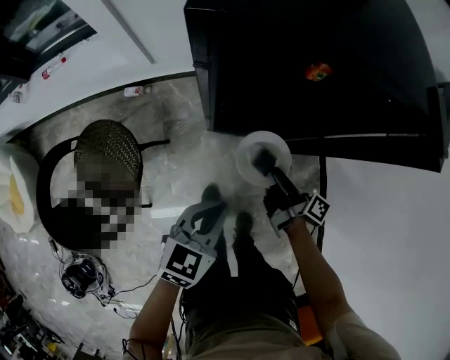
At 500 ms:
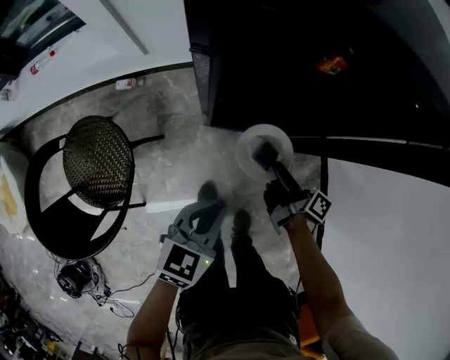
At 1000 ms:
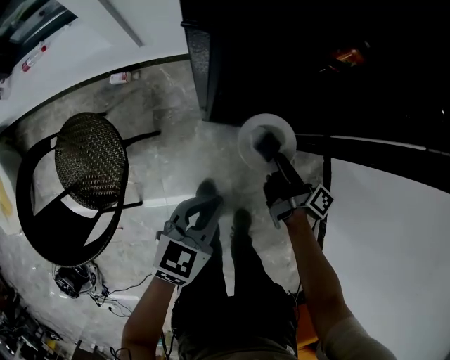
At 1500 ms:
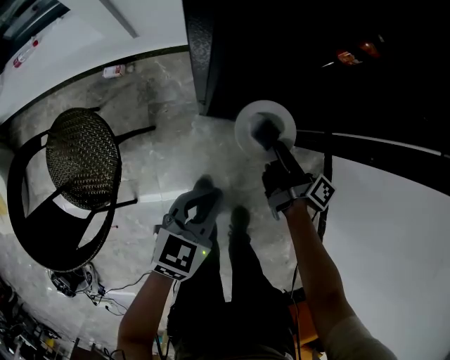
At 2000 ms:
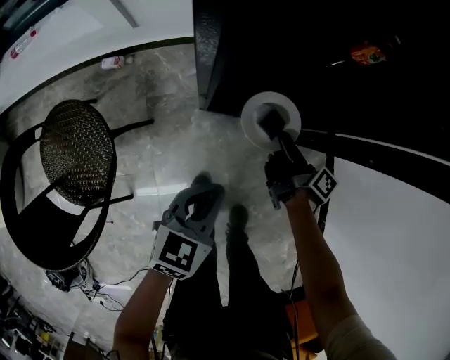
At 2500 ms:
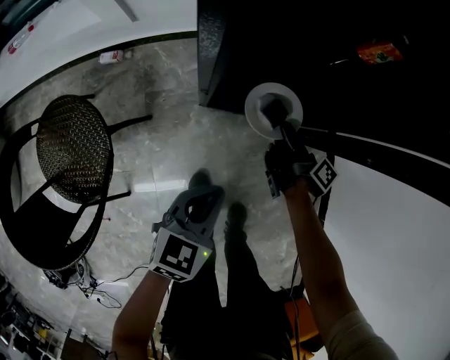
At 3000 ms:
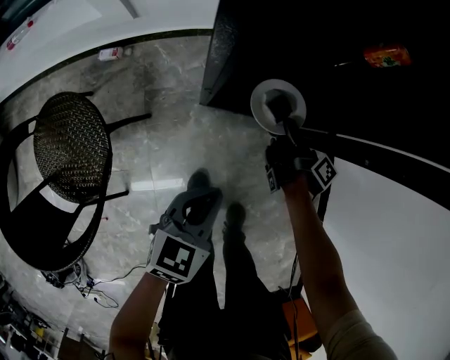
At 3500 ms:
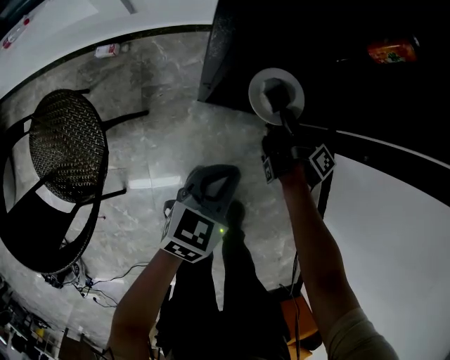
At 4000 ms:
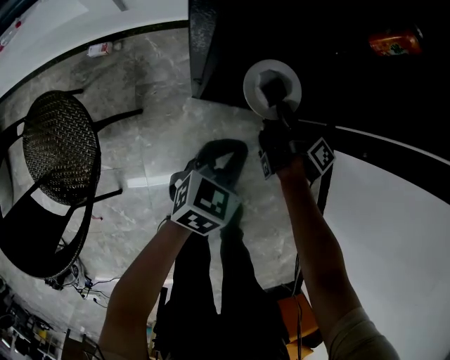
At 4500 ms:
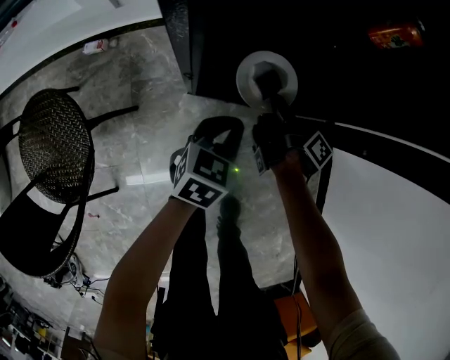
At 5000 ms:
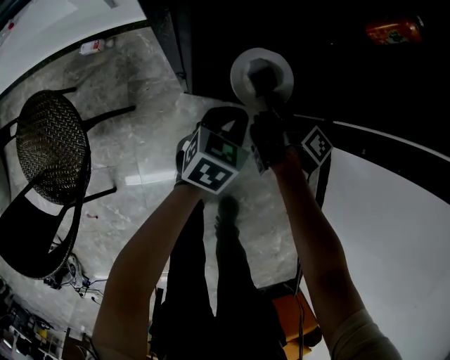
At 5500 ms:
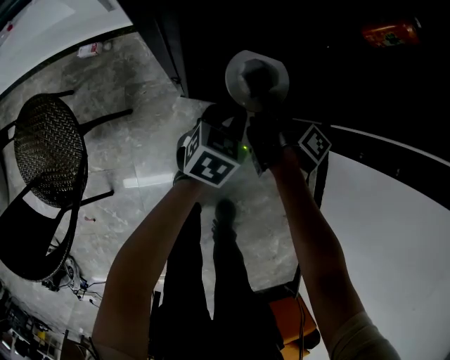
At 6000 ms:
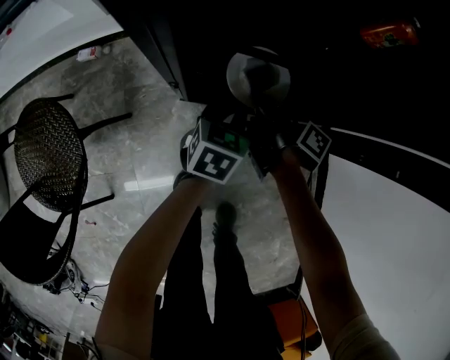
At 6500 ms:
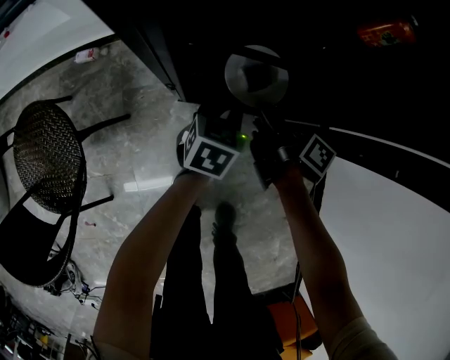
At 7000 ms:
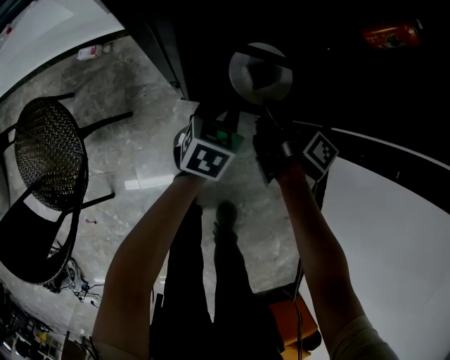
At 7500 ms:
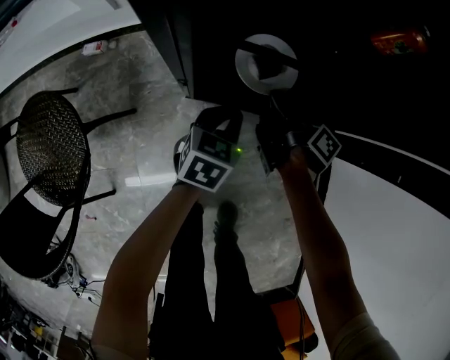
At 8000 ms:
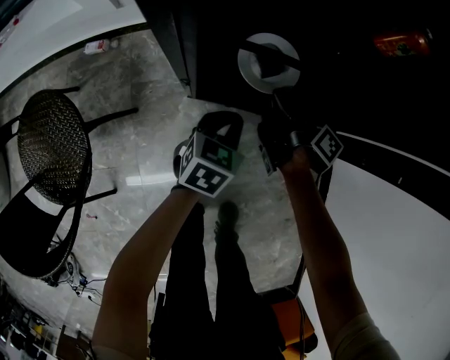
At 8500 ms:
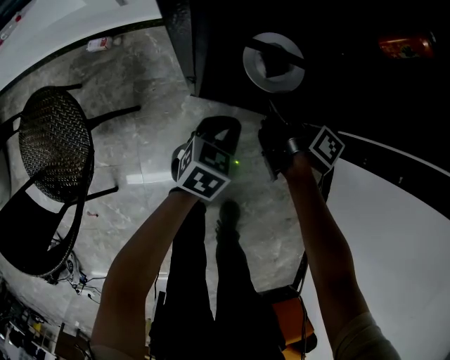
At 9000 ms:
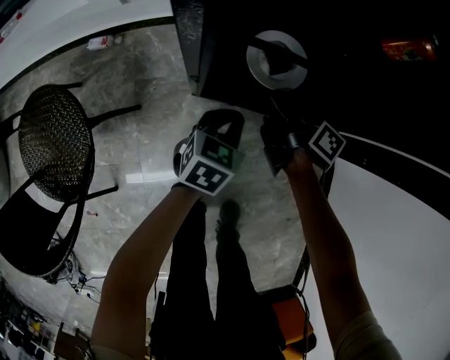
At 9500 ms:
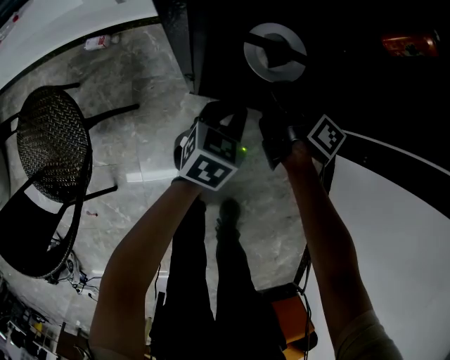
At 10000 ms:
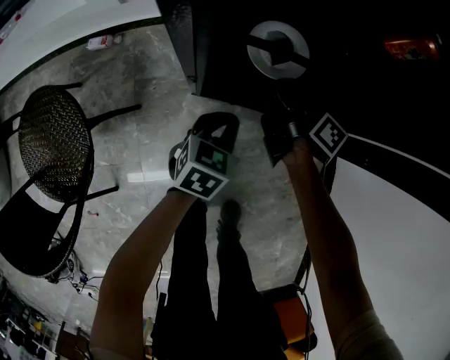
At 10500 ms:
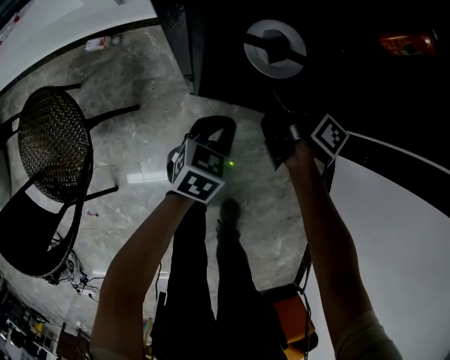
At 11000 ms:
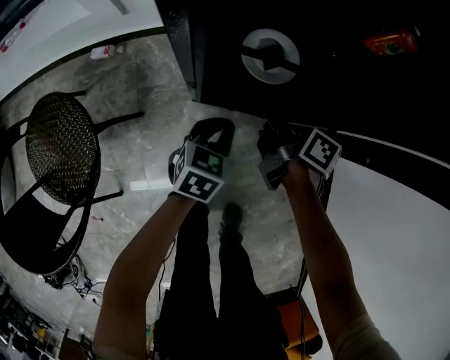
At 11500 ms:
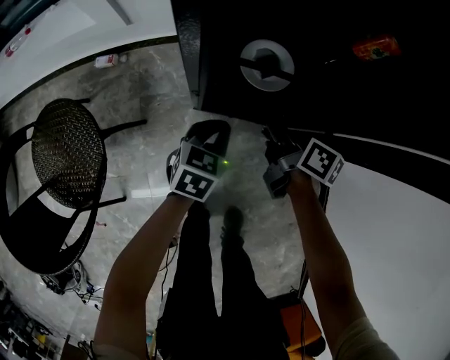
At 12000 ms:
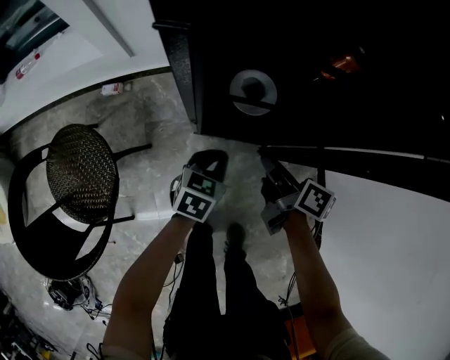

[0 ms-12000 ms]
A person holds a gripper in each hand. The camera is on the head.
0 ms to 2000 ms: The left gripper goes approximately 15 cm downward.
2000 ms to 4000 ms: The left gripper changes place by about 10 cm.
4000 ms to 6000 ms: The left gripper changes place by roughly 10 cm.
10000 ms to 12000 ms: The left gripper goes some 10 cm upward.

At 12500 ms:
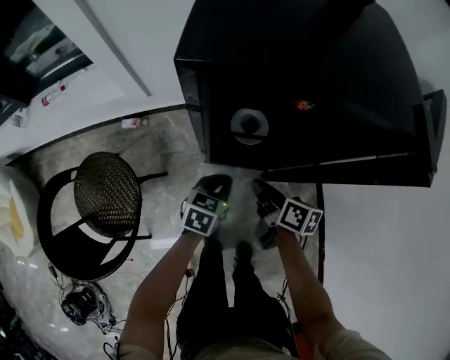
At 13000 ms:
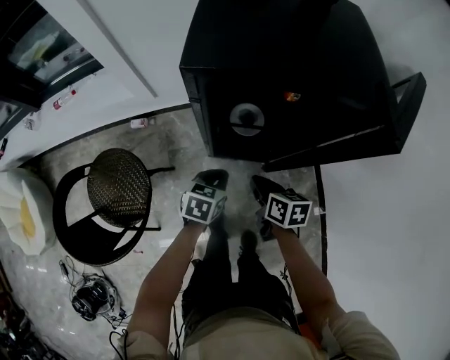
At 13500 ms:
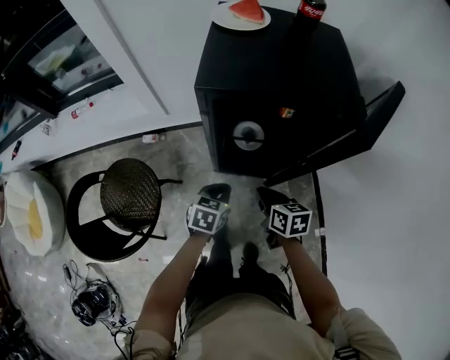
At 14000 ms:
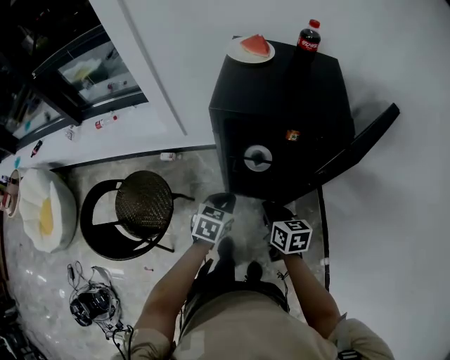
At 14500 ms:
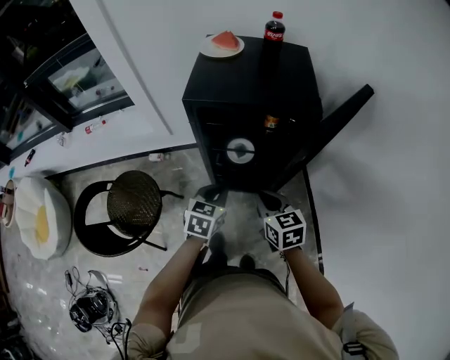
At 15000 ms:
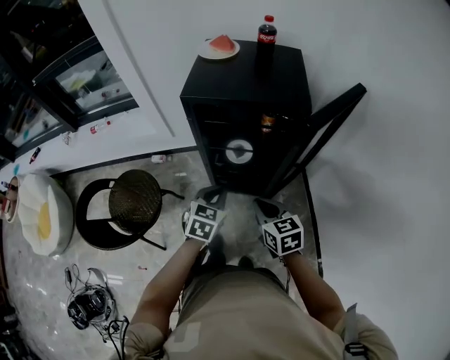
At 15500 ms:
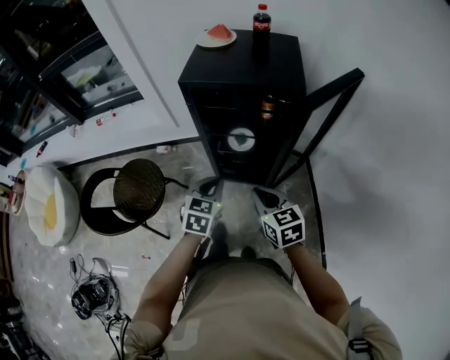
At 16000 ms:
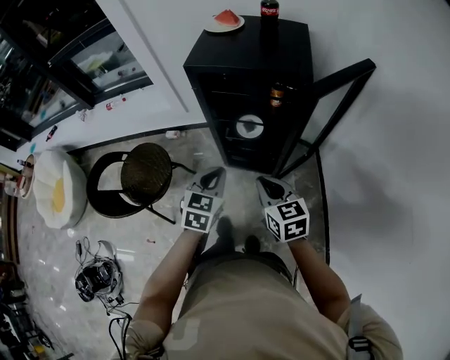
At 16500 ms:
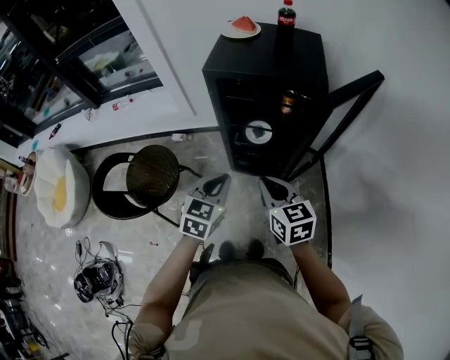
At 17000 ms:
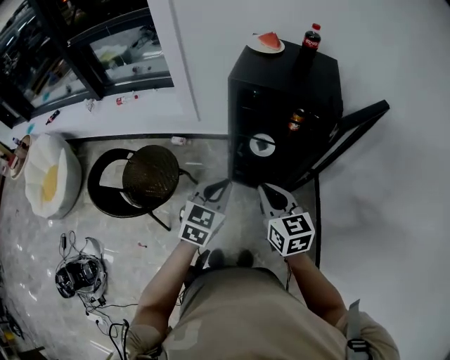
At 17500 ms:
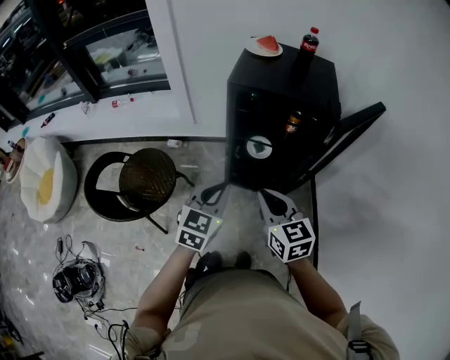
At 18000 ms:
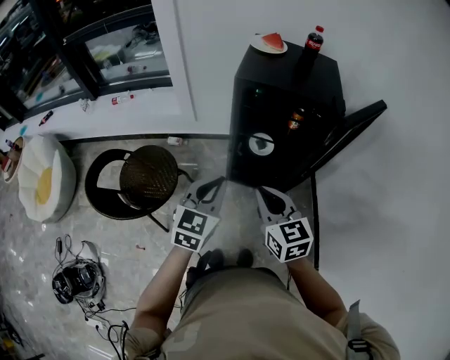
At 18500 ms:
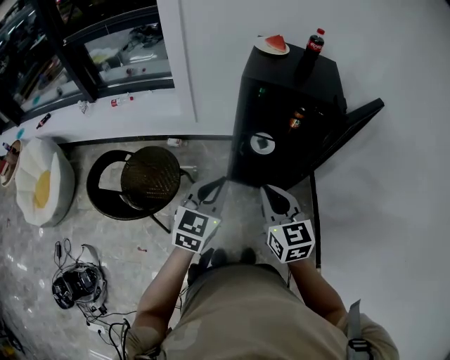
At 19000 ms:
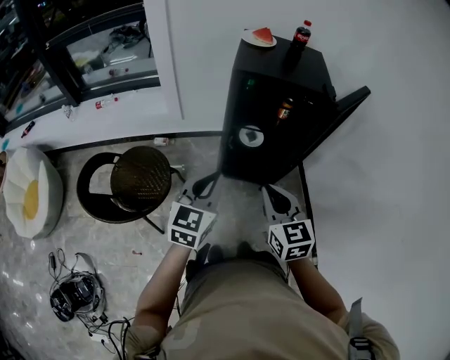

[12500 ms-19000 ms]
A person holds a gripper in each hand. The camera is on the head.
12500 ms to 14500 ms: The left gripper travels upward by some 20 cm.
14500 ms to 17000 ms: The left gripper changes place by some 15 cm.
17000 ms to 19000 ms: The left gripper changes place by approximately 10 cm.

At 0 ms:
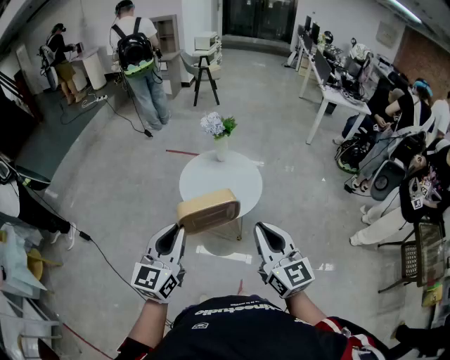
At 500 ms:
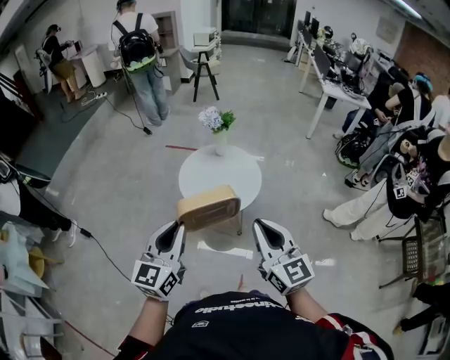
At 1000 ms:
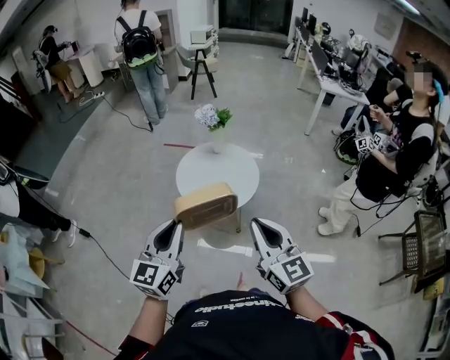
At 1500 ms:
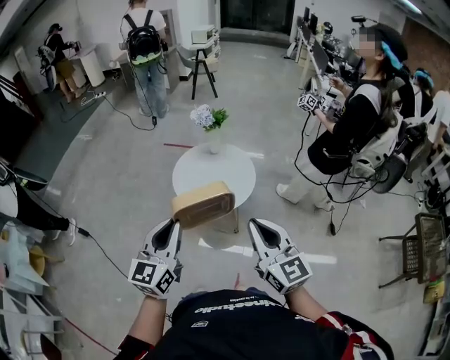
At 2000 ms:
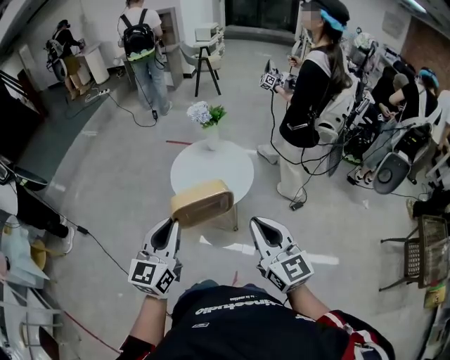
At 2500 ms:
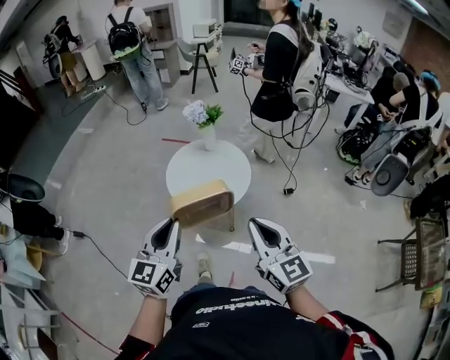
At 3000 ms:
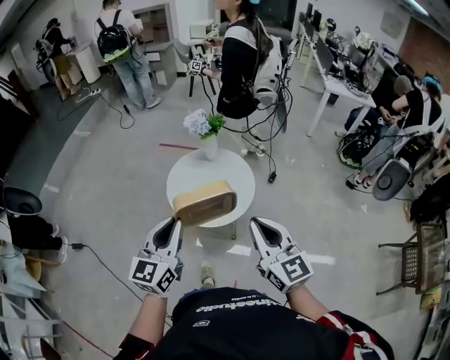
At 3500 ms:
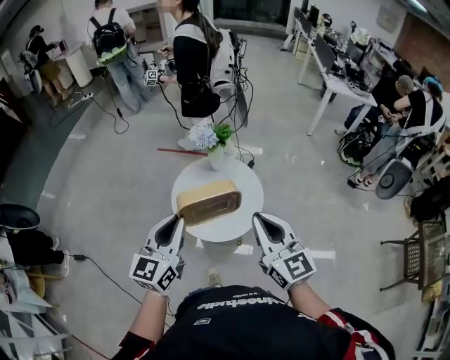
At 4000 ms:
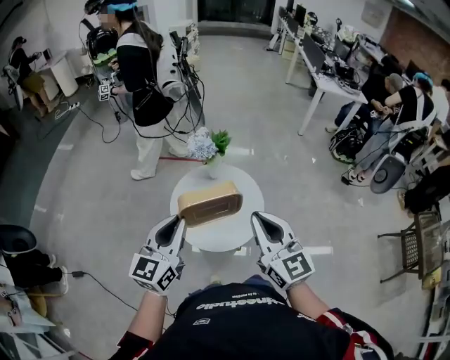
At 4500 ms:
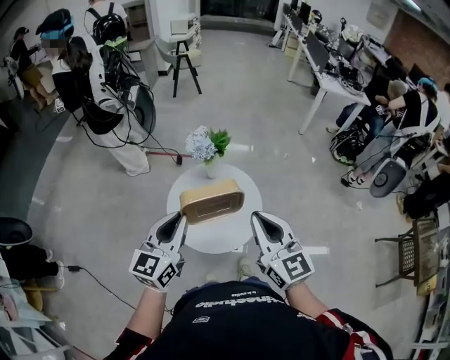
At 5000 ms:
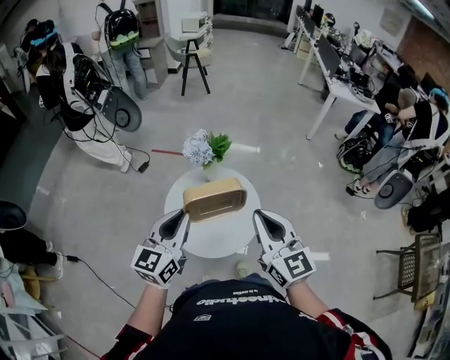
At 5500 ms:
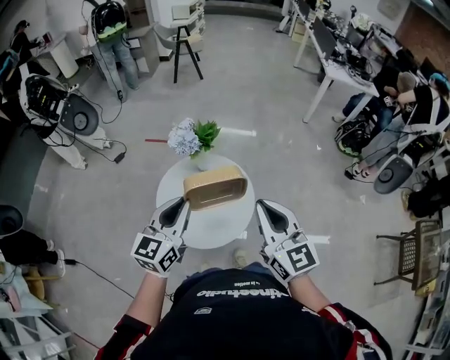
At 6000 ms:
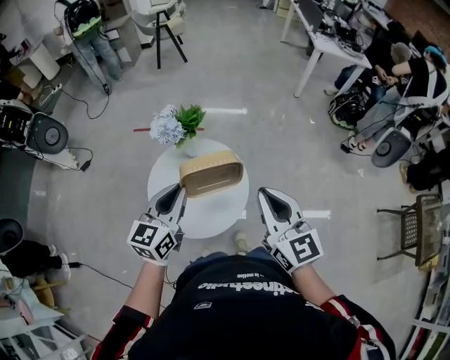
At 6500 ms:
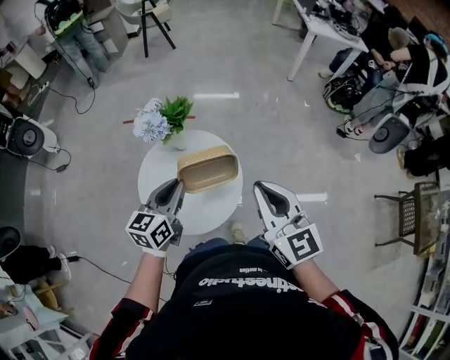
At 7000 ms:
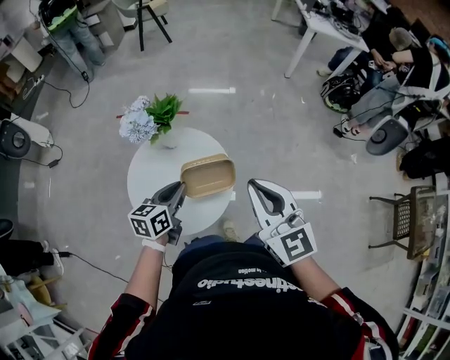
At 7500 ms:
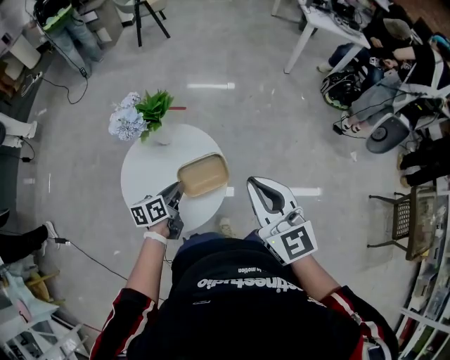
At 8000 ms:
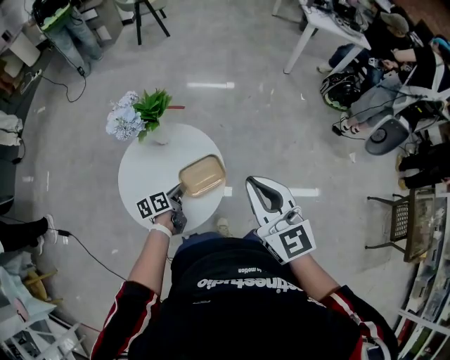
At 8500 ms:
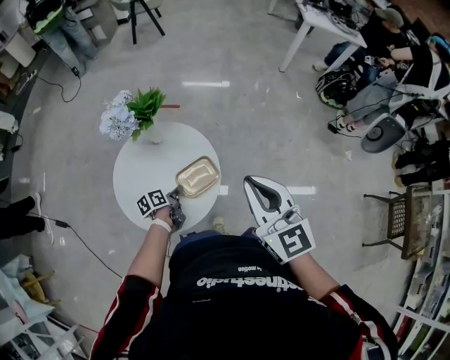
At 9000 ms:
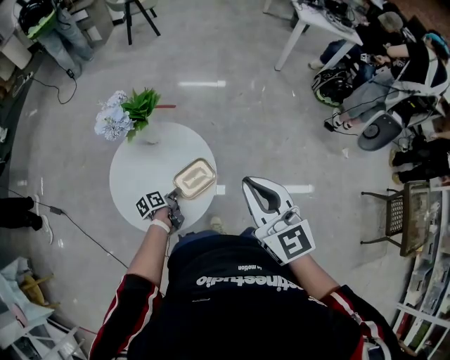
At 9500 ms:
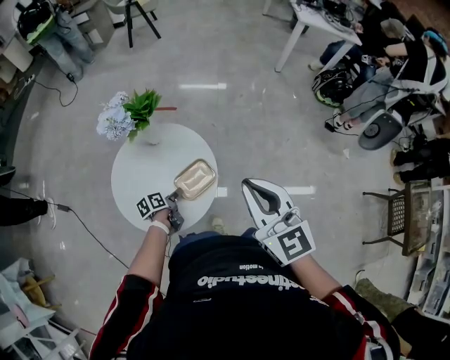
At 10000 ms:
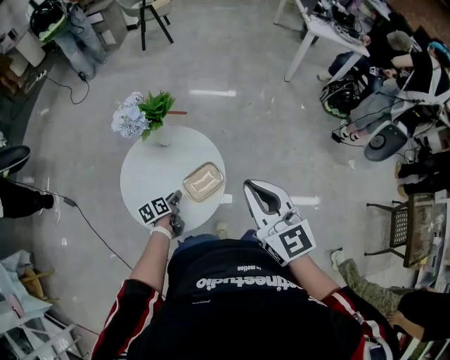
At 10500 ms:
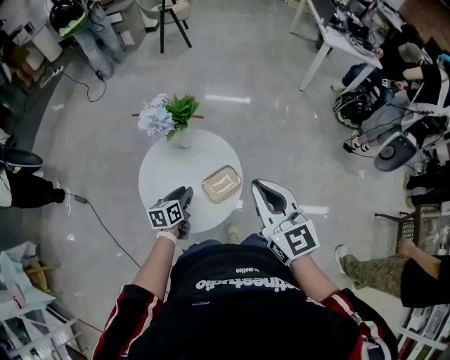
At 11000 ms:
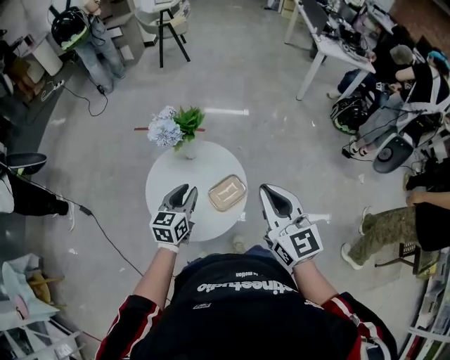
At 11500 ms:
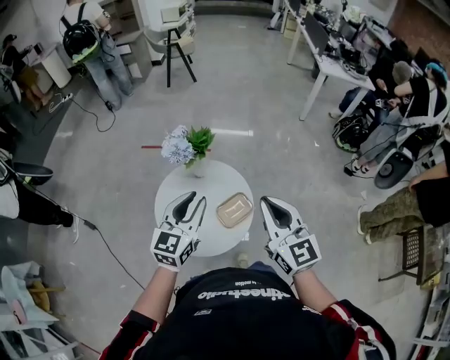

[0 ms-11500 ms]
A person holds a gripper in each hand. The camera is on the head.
0 ms to 2000 ms: The two grippers go about 10 cm to the right.
2000 ms to 4000 ms: The grippers both shift forward by some 25 cm.
4000 ms to 6000 ms: The right gripper heads to the right and forward, covering roughly 15 cm, while the left gripper shifts about 20 cm forward, to the right and downward.
6000 ms to 7500 ms: The right gripper goes about 10 cm to the right and forward. Meanwhile the left gripper shifts some 25 cm downward, and turns by approximately 40 degrees.
7500 ms to 9500 ms: The left gripper heads downward, covering about 15 cm, and changes its angle by about 20 degrees.
9500 ms to 11500 ms: The left gripper shifts approximately 40 cm upward, and rotates around the line of its fingers by about 70 degrees, clockwise from behind; the right gripper is displaced to the left and upward by about 10 cm.
